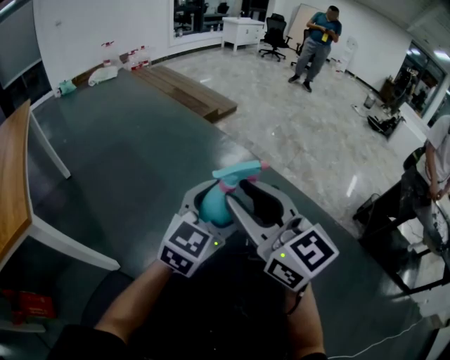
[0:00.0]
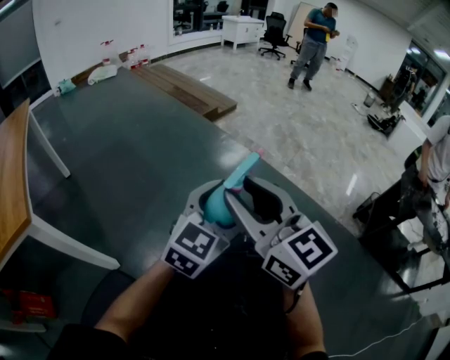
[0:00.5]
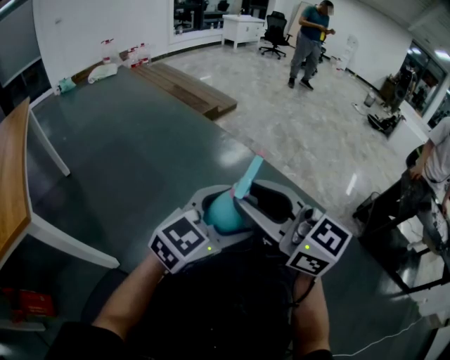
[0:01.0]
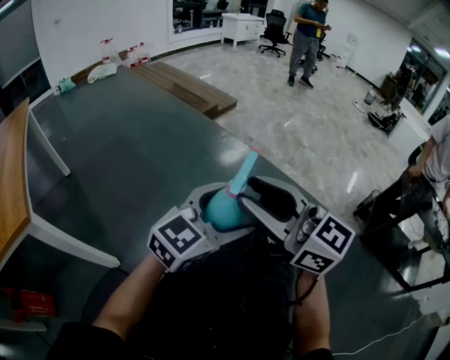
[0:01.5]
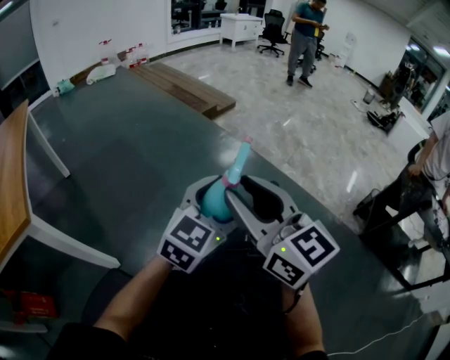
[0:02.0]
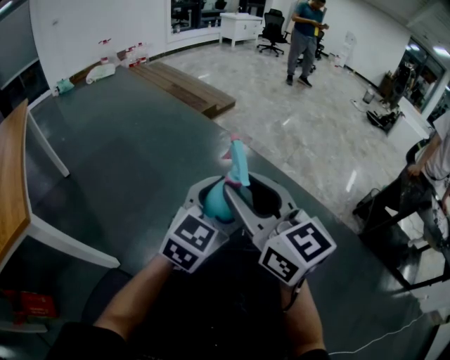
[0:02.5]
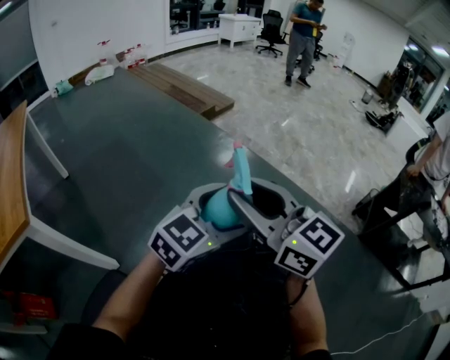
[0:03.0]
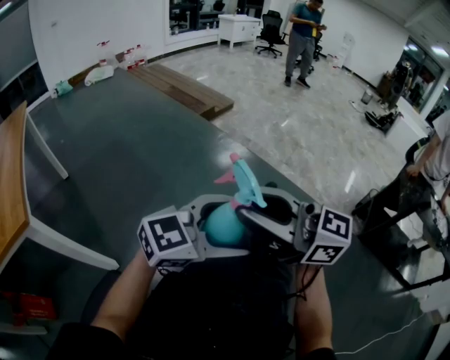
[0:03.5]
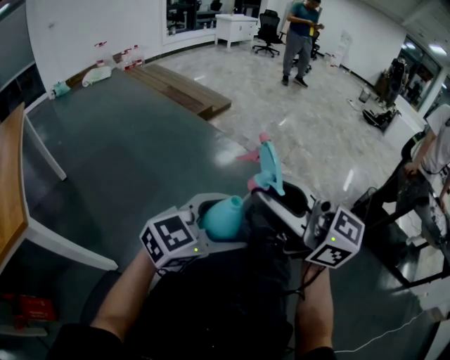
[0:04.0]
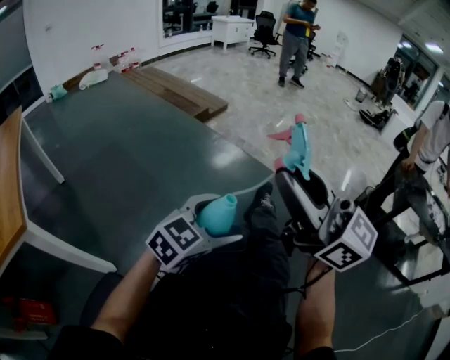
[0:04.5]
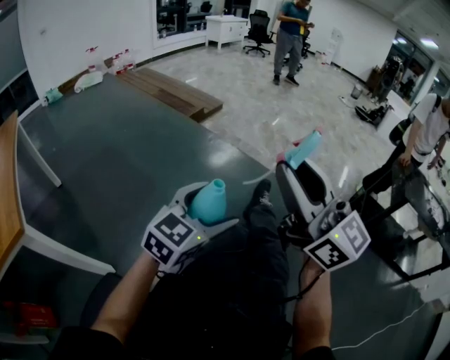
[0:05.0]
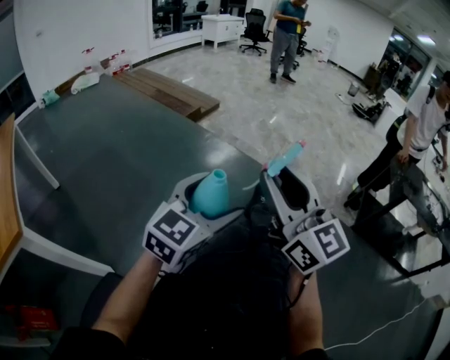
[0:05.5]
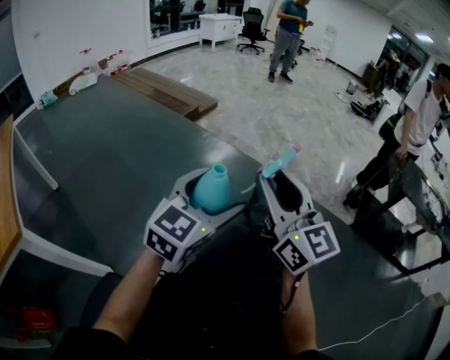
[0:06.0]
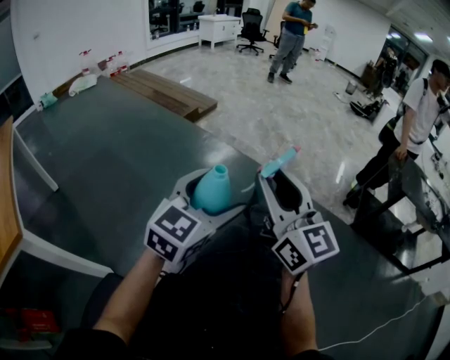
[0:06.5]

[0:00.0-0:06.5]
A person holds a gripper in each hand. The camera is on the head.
0:02.0 to 0:04.5: The right gripper changes place by approximately 10 cm, and rotates approximately 20 degrees, while the left gripper changes place by roughly 5 cm, and swivels some 20 degrees.
0:04.5 to 0:06.5: The right gripper is displaced downward by roughly 10 cm, and swivels some 30 degrees; the left gripper is displaced upward by some 5 cm.

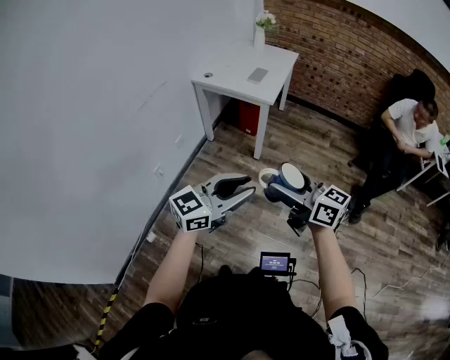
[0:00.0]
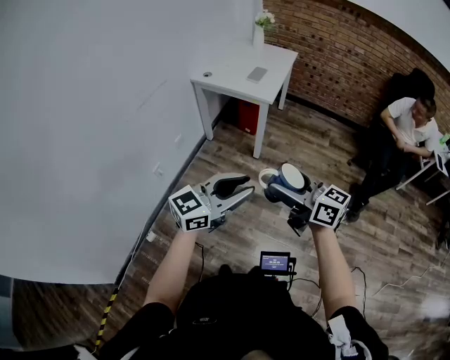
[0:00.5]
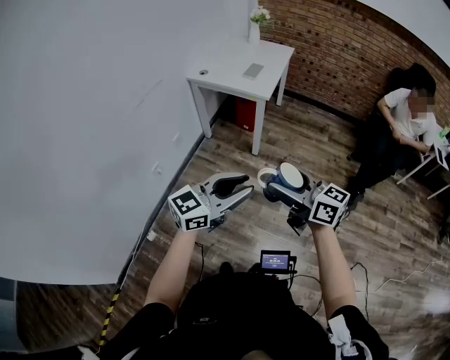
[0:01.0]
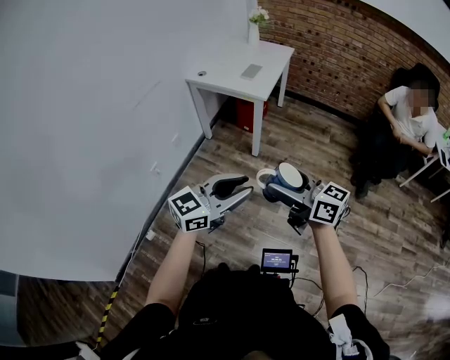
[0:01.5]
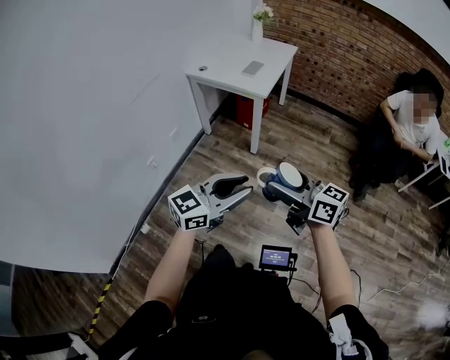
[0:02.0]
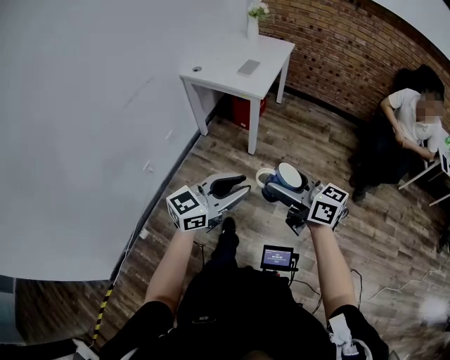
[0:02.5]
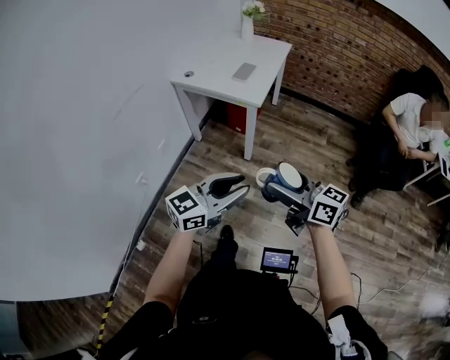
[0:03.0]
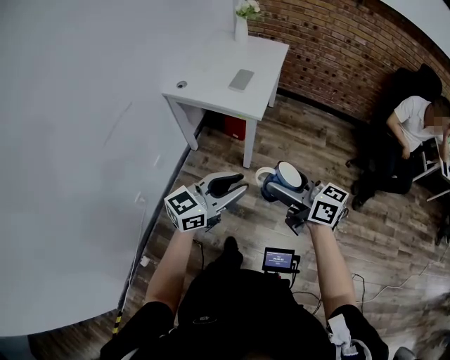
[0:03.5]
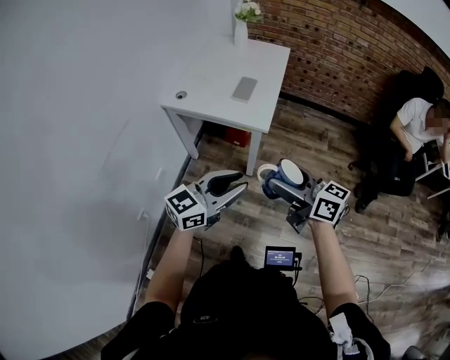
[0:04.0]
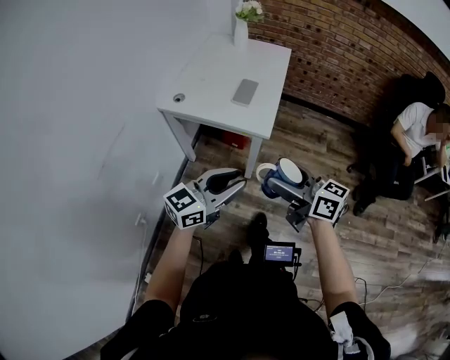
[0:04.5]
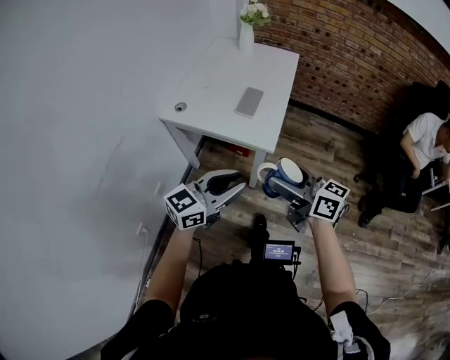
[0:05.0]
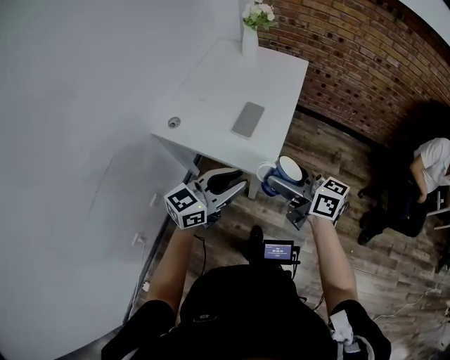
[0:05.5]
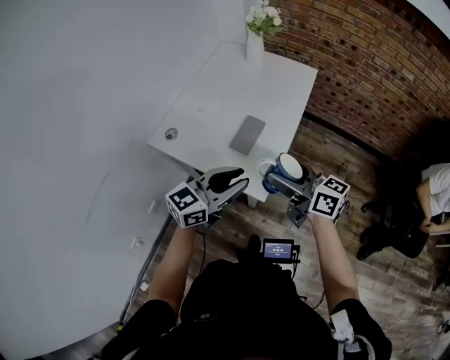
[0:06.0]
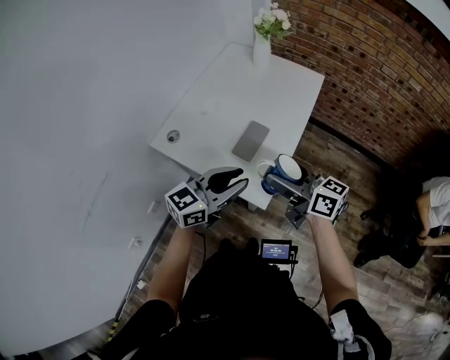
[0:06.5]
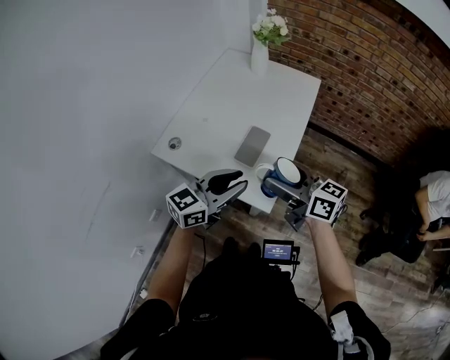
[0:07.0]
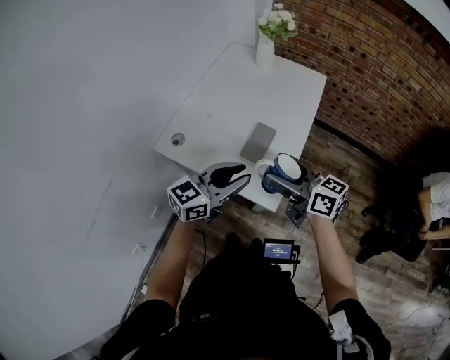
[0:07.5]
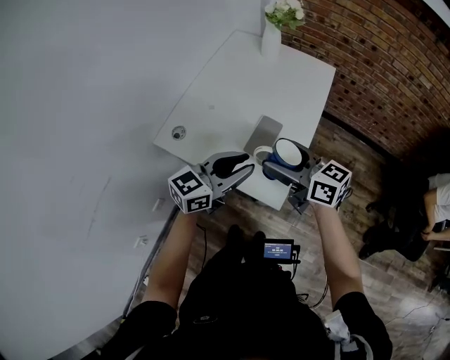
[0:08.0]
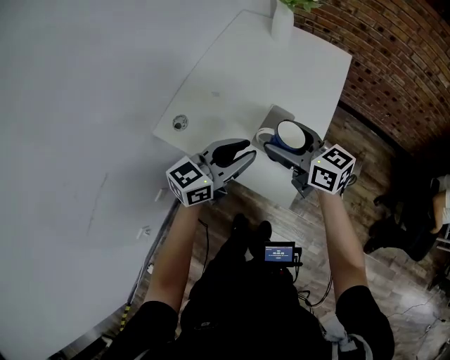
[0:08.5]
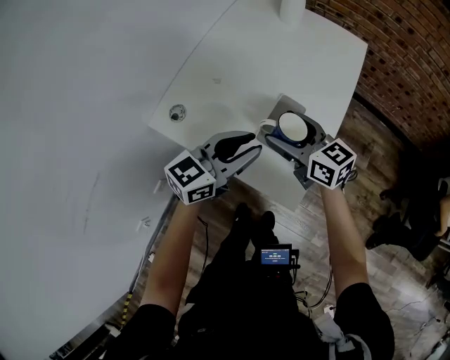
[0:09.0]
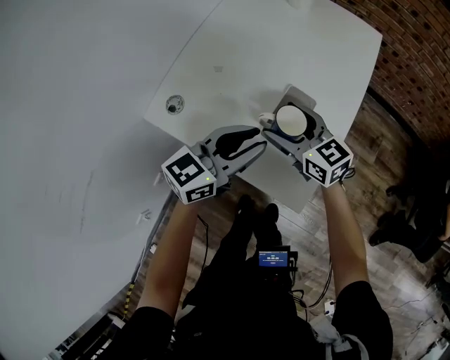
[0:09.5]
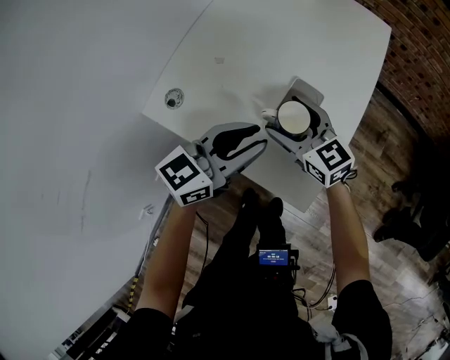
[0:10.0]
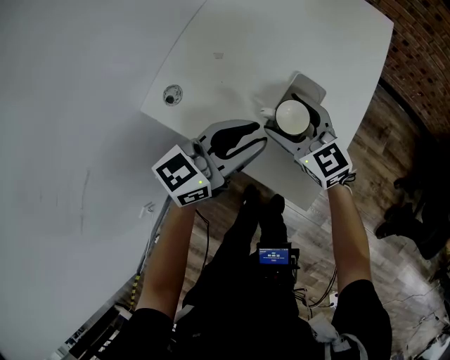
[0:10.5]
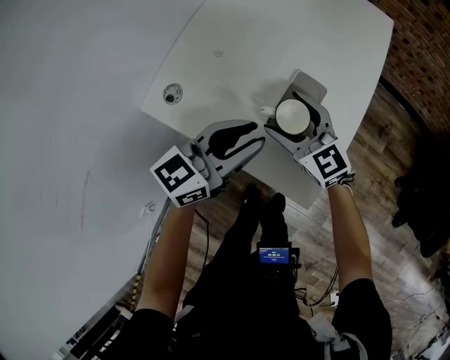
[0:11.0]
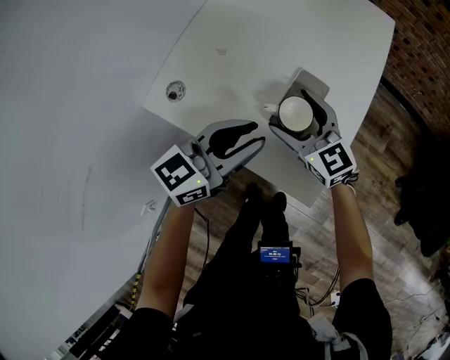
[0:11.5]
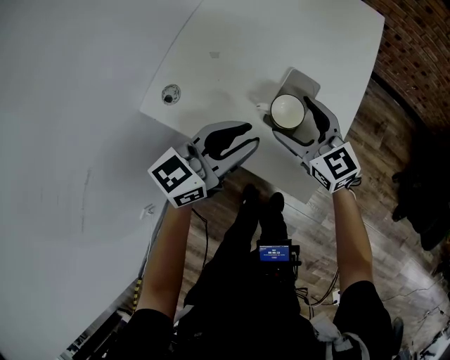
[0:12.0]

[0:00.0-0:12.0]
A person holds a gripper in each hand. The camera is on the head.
0:00.0 to 0:02.0: Both grippers travel together to the right, roughly 5 cm.
0:02.0 to 0:04.0: Both grippers move forward, some 25 cm.
0:04.0 to 0:06.0: Both grippers travel together forward, roughly 35 cm.
0:06.0 to 0:08.0: The left gripper heads forward, covering about 5 cm. Meanwhile the right gripper heads to the left and forward, covering about 10 cm.
0:08.0 to 0:10.0: The left gripper goes roughly 10 cm downward and forward. Meanwhile the right gripper goes approximately 20 cm downward and forward, and swivels roughly 20 degrees.
0:10.0 to 0:12.0: There are only small adjustments of the grippers.

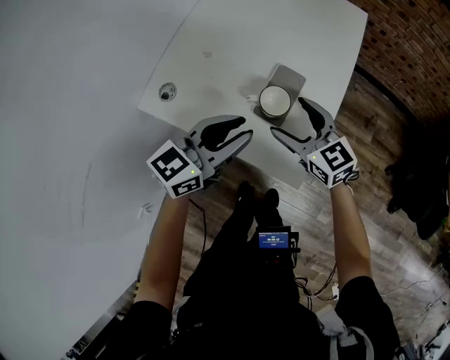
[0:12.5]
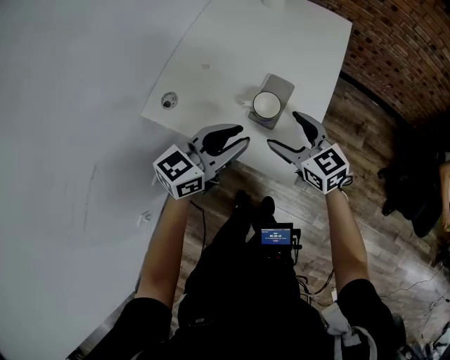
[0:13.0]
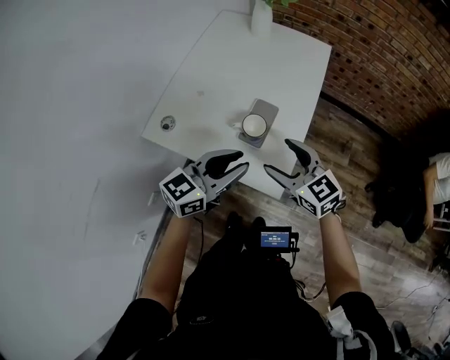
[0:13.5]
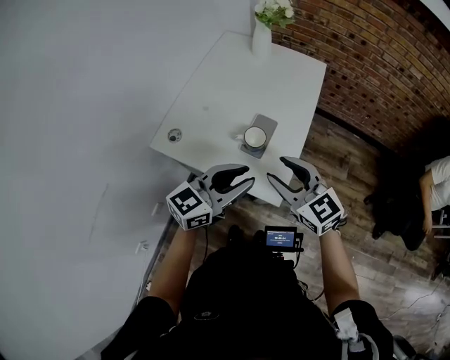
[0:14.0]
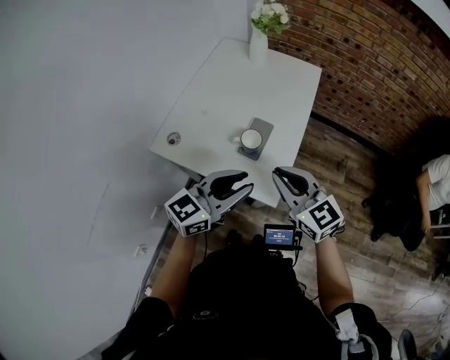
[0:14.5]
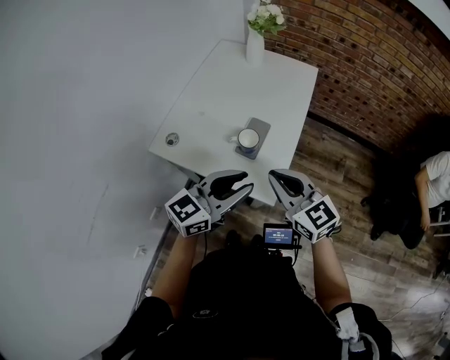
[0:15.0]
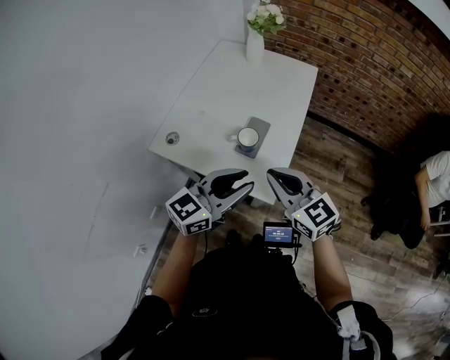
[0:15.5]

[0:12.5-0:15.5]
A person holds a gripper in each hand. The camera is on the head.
0:12.5 to 0:14.0: The right gripper moves upward and backward, some 20 cm, and closes. Meanwhile the left gripper shifts approximately 10 cm upward and backward.
0:14.0 to 0:15.5: The right gripper closes its fingers.

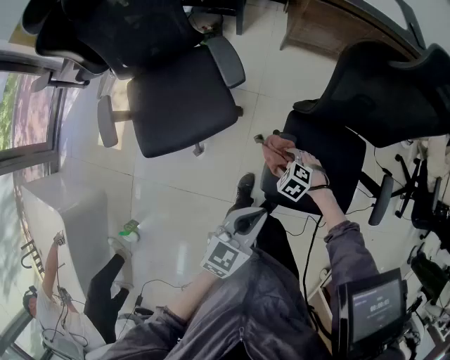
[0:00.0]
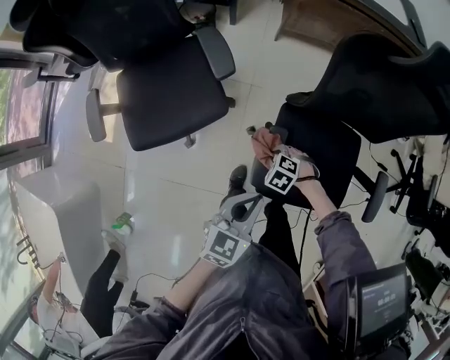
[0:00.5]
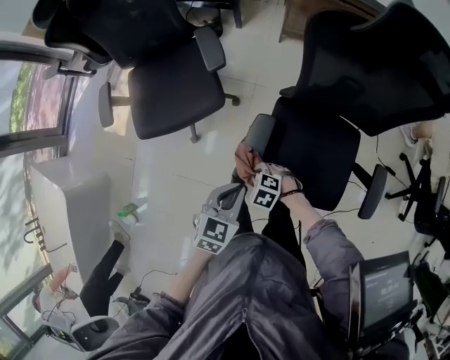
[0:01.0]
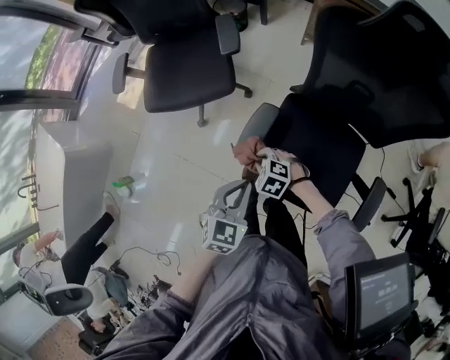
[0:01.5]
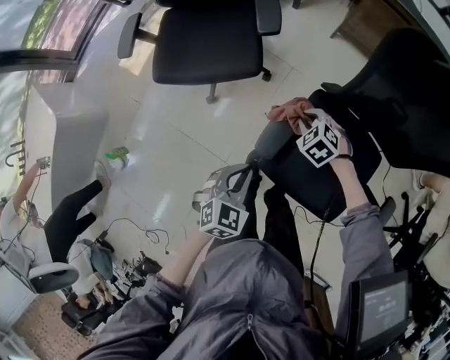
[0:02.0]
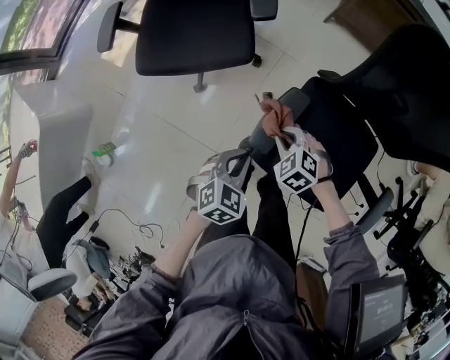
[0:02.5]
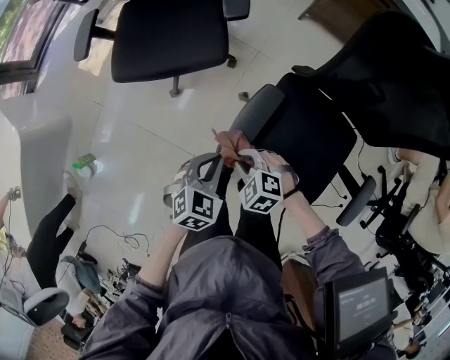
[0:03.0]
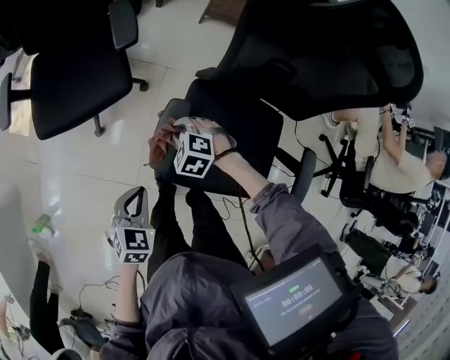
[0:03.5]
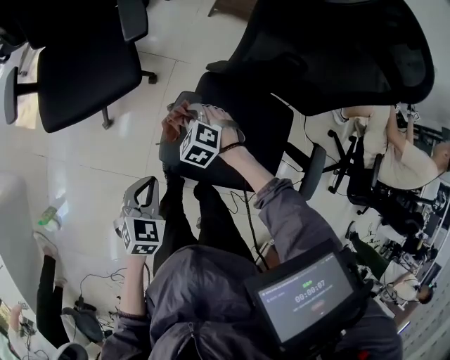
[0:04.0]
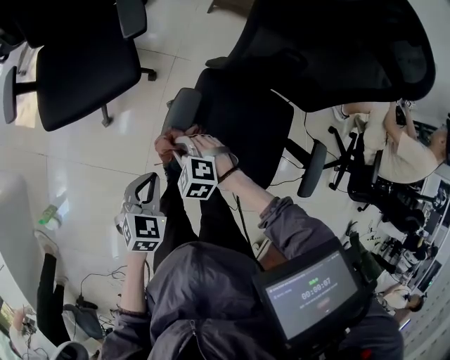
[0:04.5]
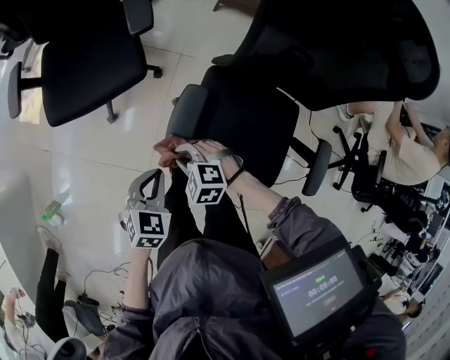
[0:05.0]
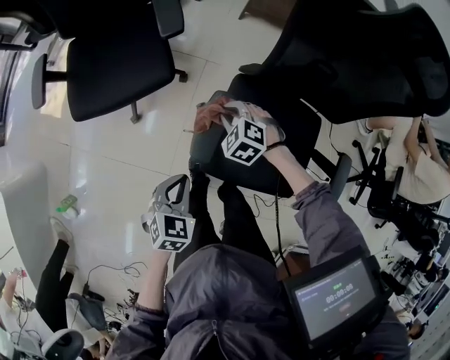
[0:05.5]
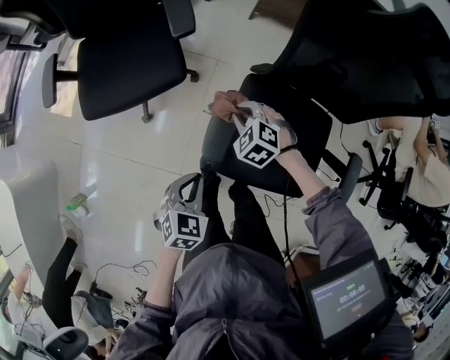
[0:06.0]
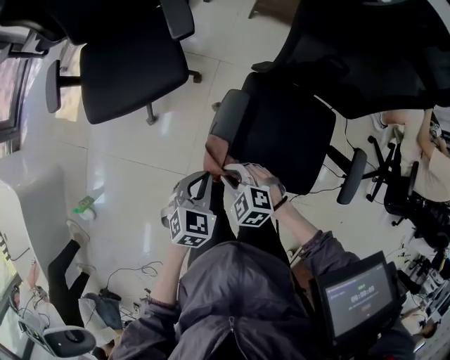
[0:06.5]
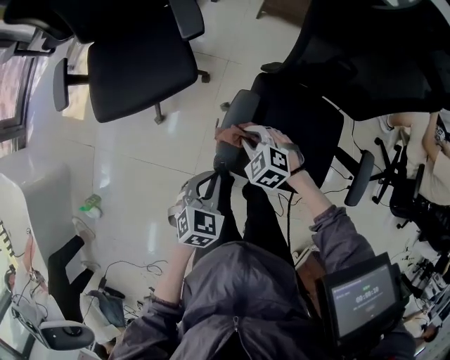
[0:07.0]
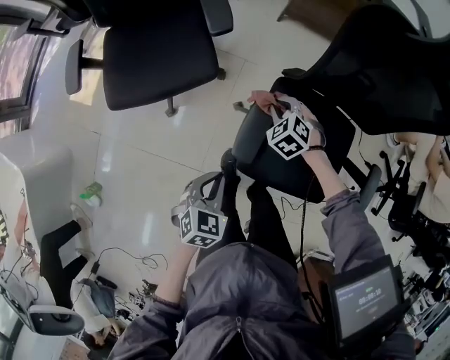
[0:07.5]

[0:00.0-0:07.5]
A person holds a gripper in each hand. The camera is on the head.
0:00.0 to 0:02.0: The right gripper closes its fingers. Meanwhile the left gripper shifts some 10 cm downward, and turns by approximately 40 degrees.
0:02.0 to 0:04.0: The right gripper moves roughly 15 cm backward and comes back.
0:04.0 to 0:05.5: The right gripper goes backward and returns, approximately 15 cm each way.
0:05.5 to 0:07.5: The right gripper reaches roughly 20 cm backward, then returns.
